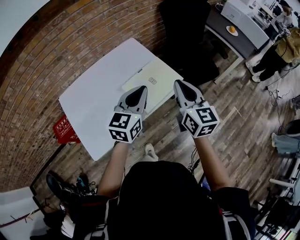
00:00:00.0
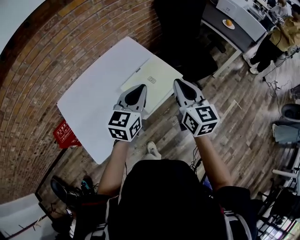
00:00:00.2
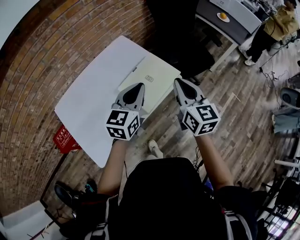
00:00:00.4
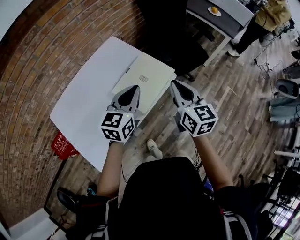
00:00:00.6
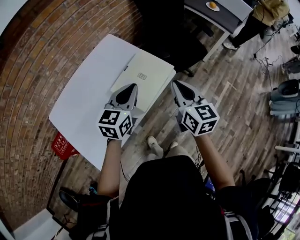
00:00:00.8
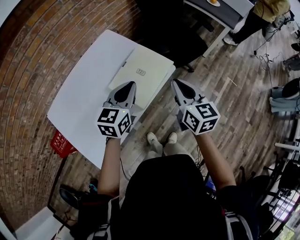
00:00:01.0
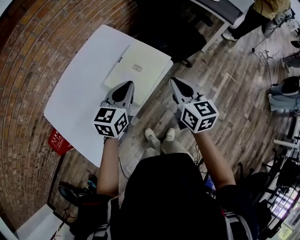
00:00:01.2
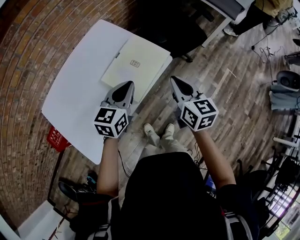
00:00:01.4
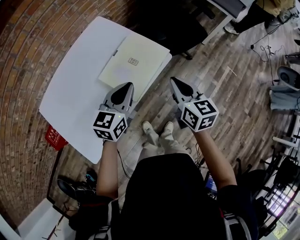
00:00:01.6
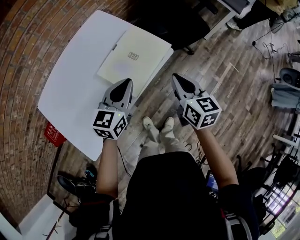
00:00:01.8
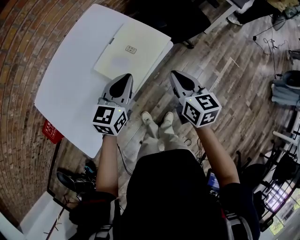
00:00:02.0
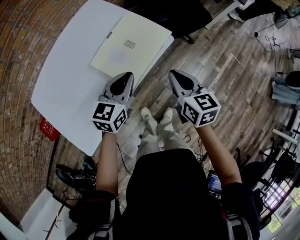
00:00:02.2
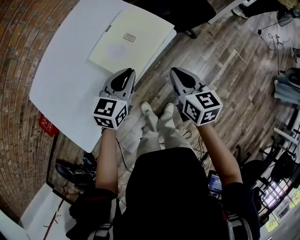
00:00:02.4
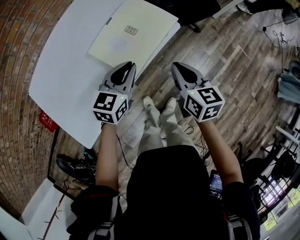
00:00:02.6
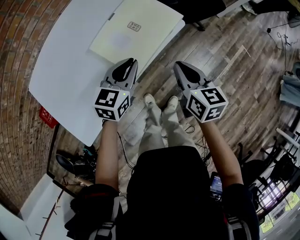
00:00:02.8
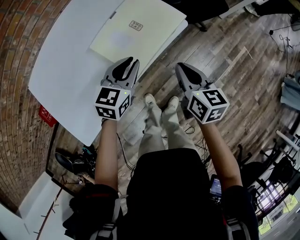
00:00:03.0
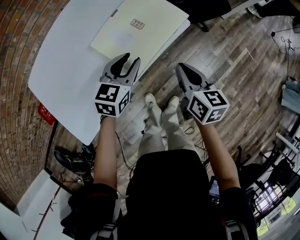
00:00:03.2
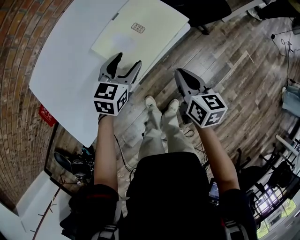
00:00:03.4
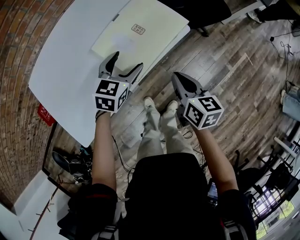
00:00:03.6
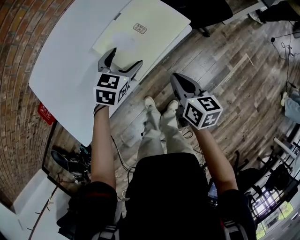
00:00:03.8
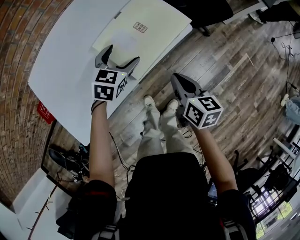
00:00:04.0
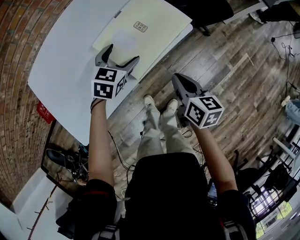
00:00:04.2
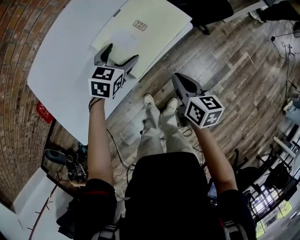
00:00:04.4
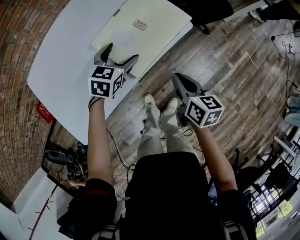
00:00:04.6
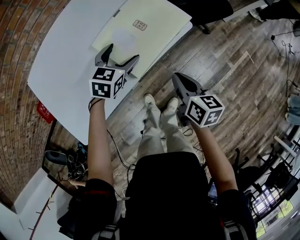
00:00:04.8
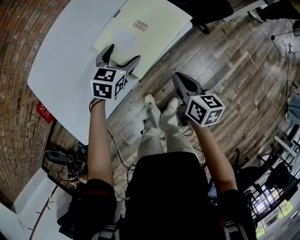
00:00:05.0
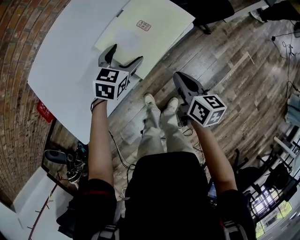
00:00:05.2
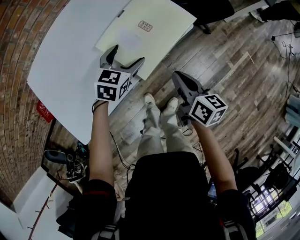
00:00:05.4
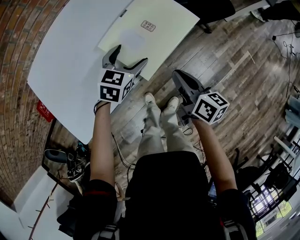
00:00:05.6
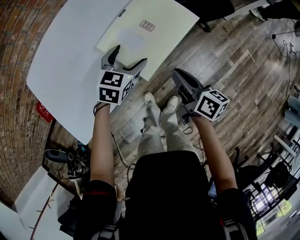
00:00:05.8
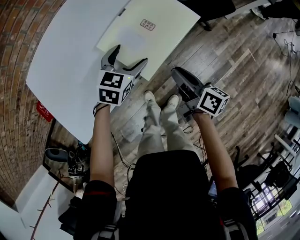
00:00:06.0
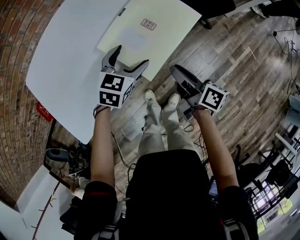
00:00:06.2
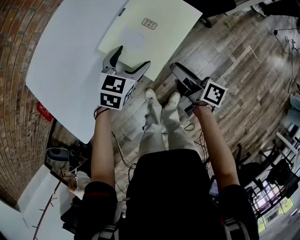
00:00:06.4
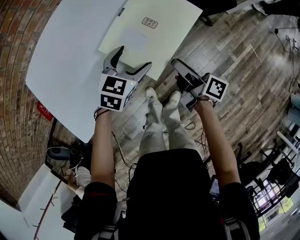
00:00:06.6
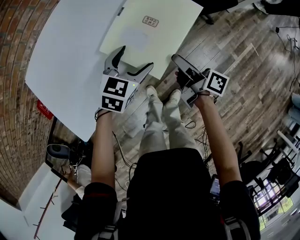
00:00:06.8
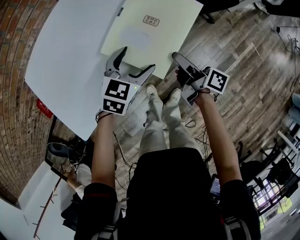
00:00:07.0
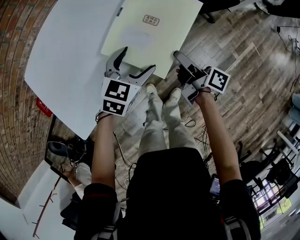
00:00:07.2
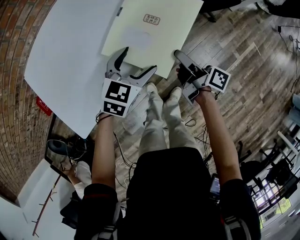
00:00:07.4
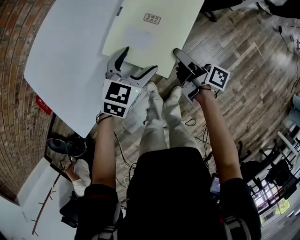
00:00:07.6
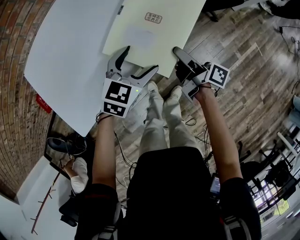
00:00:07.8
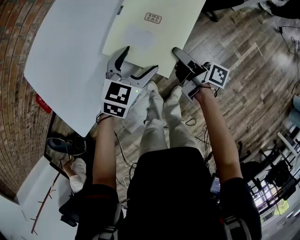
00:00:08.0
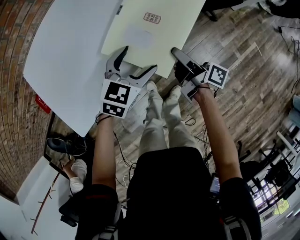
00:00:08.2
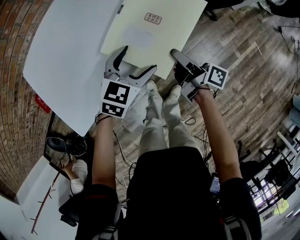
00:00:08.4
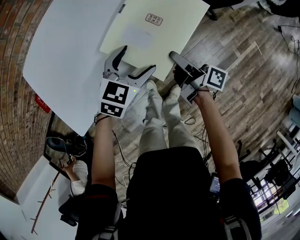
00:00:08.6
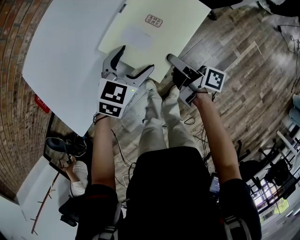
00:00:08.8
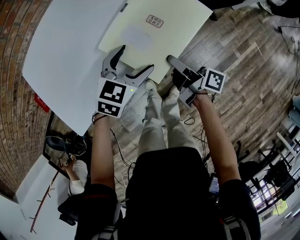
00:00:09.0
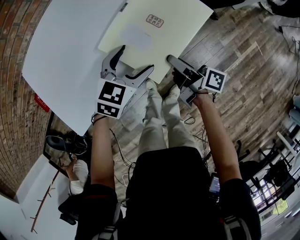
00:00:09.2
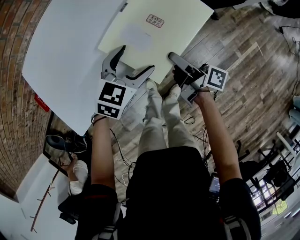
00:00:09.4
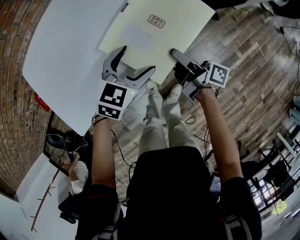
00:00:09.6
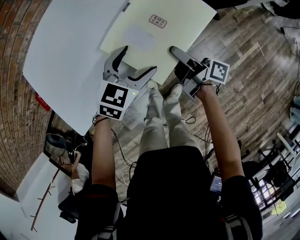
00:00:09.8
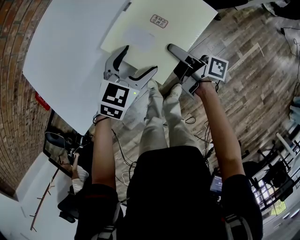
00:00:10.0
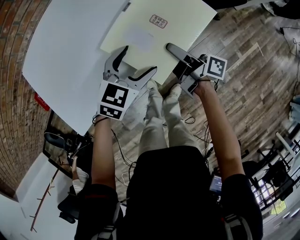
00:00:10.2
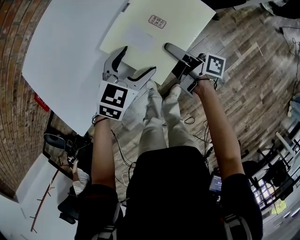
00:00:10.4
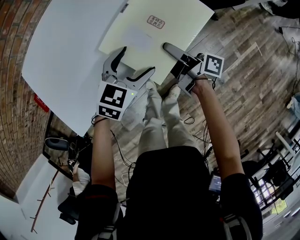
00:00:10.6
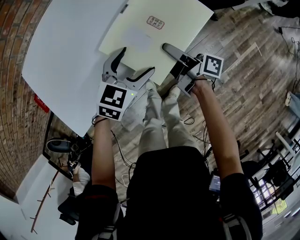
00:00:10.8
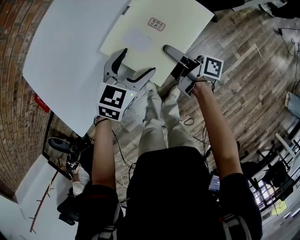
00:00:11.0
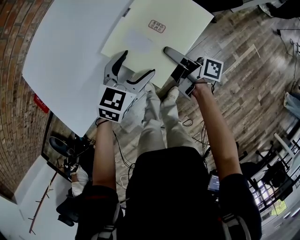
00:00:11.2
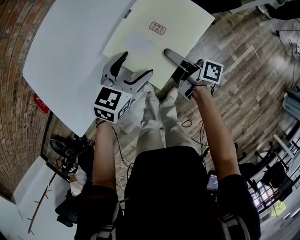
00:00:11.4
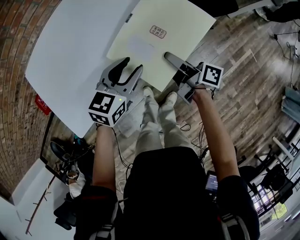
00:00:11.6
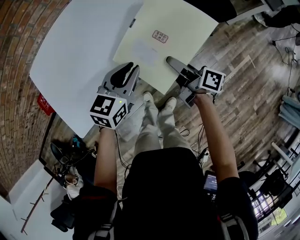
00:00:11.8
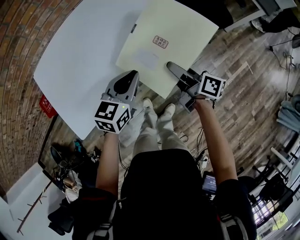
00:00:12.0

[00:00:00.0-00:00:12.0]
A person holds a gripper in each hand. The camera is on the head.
00:00:00.0 to 00:00:01.6: The grippers both shift downward by about 15 cm. The right gripper changes its angle by approximately 20 degrees.
00:00:01.6 to 00:00:03.0: Both grippers move downward, approximately 10 cm.
00:00:03.0 to 00:00:04.4: The left gripper heads forward and downward, covering approximately 5 cm, and opens.
00:00:04.4 to 00:00:06.0: The right gripper rotates about 30 degrees.
00:00:06.0 to 00:00:07.6: The left gripper heads backward, covering approximately 5 cm. Meanwhile the right gripper changes place by roughly 5 cm, swivels roughly 20 degrees, and opens its fingers.
00:00:07.6 to 00:00:10.4: The grippers move only a little.
00:00:10.4 to 00:00:12.0: The grippers both shift upward by some 10 cm. The left gripper turns by some 20 degrees, and closes its fingers; the right gripper changes its angle by some 20 degrees.

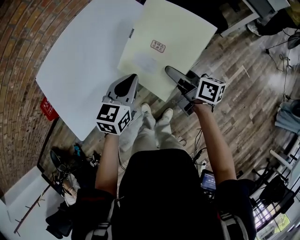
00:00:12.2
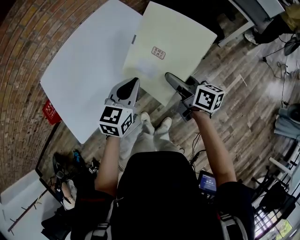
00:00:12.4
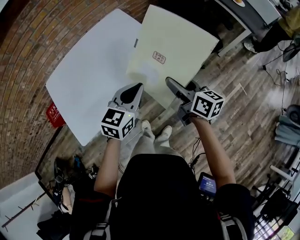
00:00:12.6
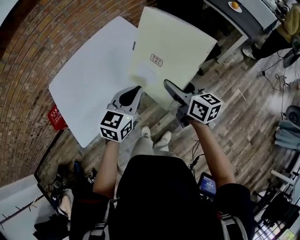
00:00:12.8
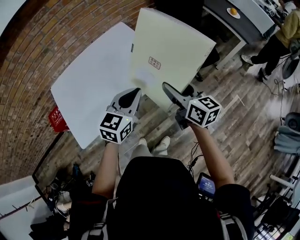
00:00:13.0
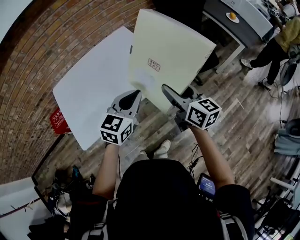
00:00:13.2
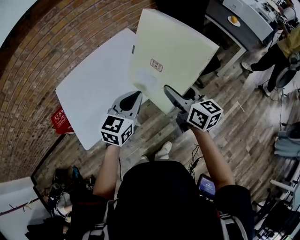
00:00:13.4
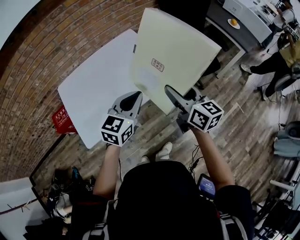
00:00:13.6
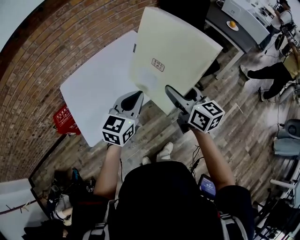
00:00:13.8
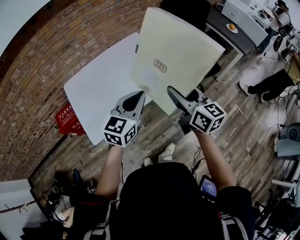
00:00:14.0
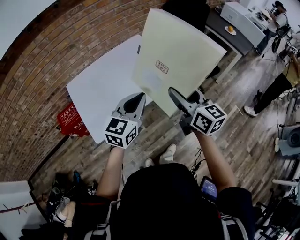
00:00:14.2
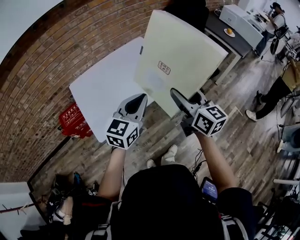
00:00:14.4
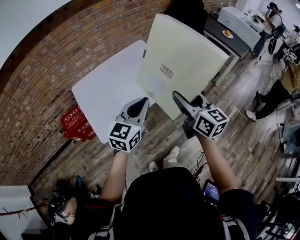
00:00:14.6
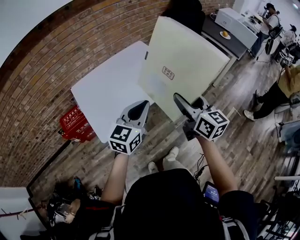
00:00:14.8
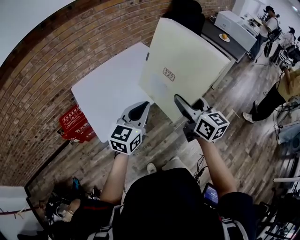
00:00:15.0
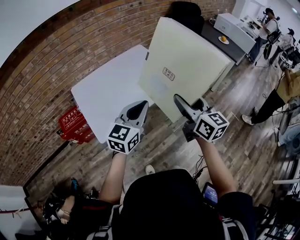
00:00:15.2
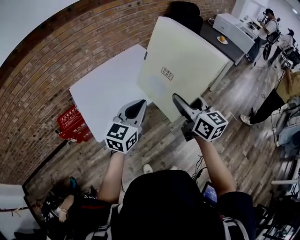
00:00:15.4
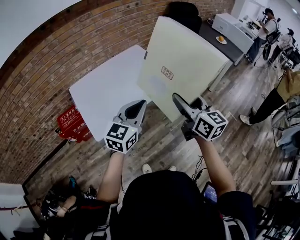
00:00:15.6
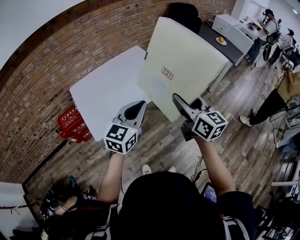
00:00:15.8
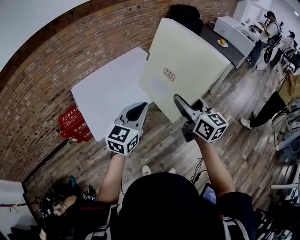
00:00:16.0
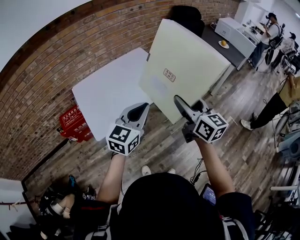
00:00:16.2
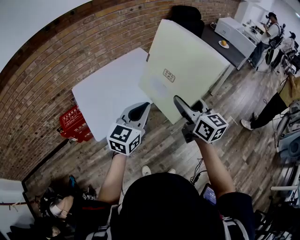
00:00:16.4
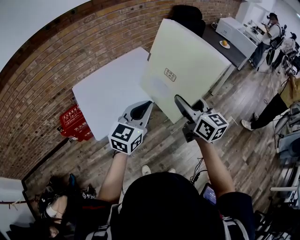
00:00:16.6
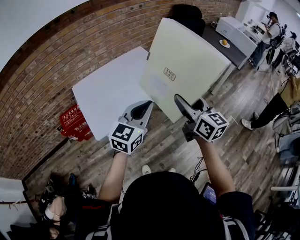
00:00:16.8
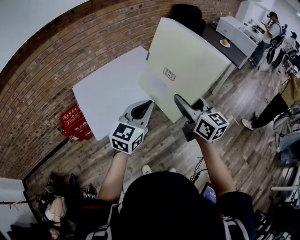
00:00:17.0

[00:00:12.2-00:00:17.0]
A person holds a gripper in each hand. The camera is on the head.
00:00:12.2 to 00:00:13.8: The grippers both shift upward and backward by roughly 20 cm. The right gripper swivels some 40 degrees.
00:00:13.8 to 00:00:15.4: The right gripper moves backward and upward, approximately 15 cm. The left gripper travels backward by roughly 15 cm.
00:00:15.4 to 00:00:17.0: The grippers move only a little.

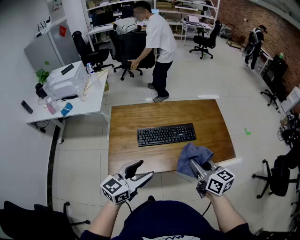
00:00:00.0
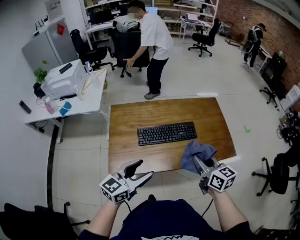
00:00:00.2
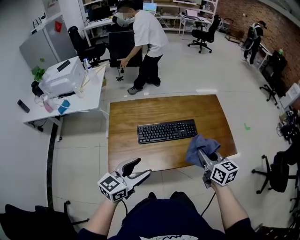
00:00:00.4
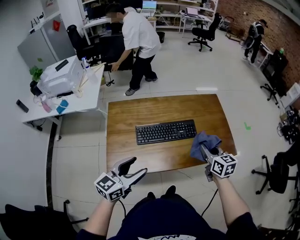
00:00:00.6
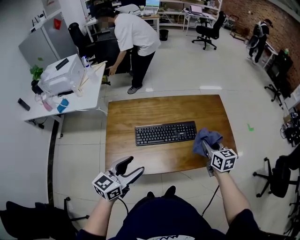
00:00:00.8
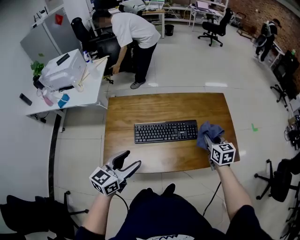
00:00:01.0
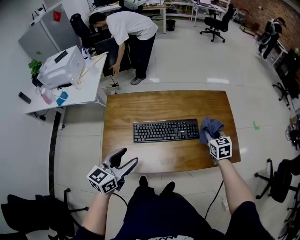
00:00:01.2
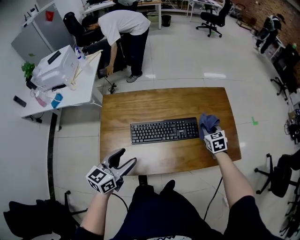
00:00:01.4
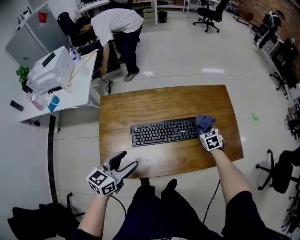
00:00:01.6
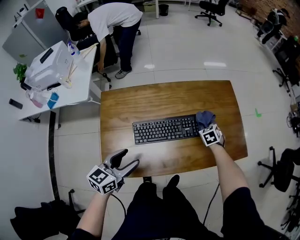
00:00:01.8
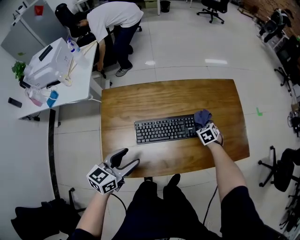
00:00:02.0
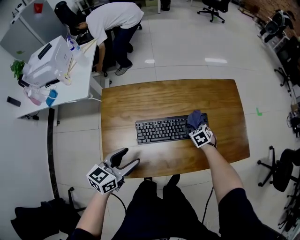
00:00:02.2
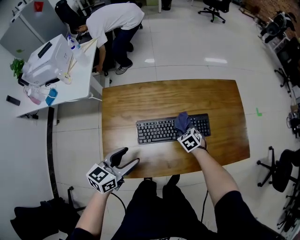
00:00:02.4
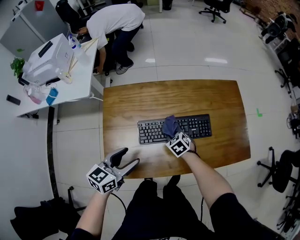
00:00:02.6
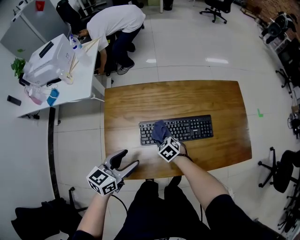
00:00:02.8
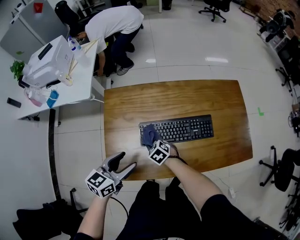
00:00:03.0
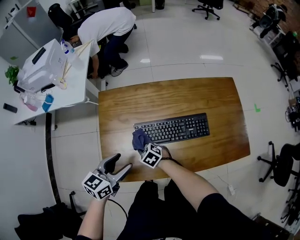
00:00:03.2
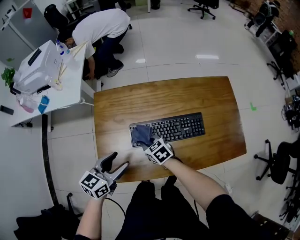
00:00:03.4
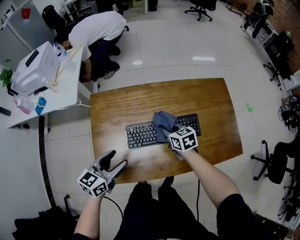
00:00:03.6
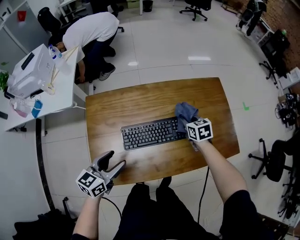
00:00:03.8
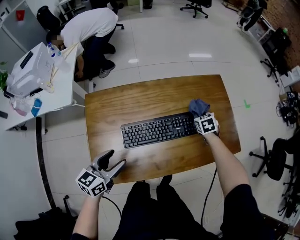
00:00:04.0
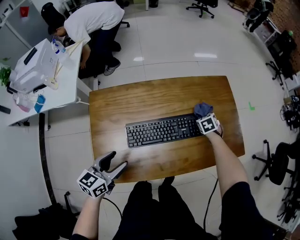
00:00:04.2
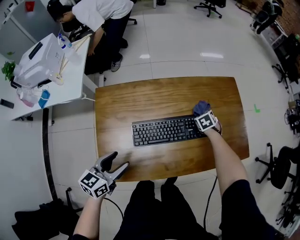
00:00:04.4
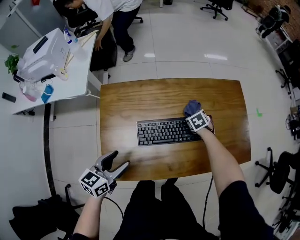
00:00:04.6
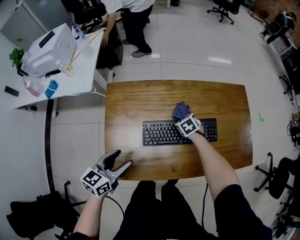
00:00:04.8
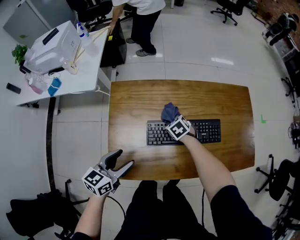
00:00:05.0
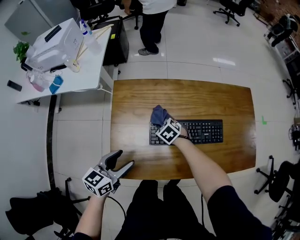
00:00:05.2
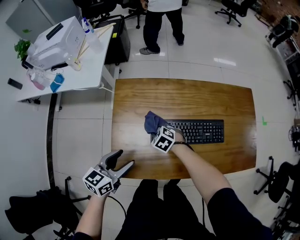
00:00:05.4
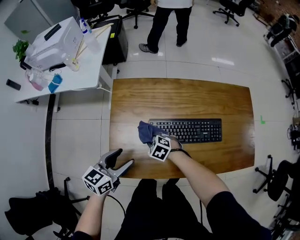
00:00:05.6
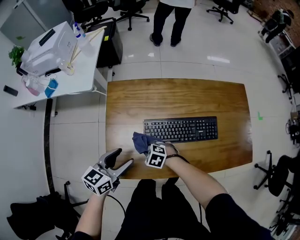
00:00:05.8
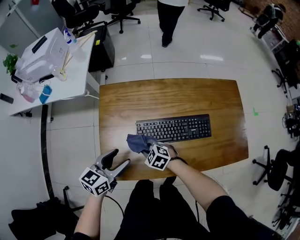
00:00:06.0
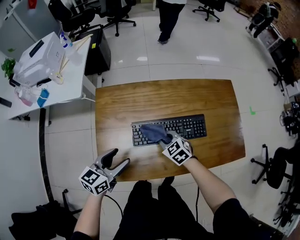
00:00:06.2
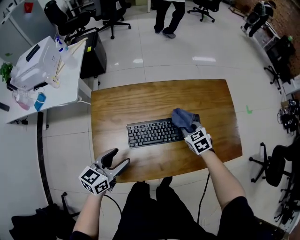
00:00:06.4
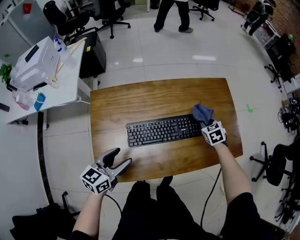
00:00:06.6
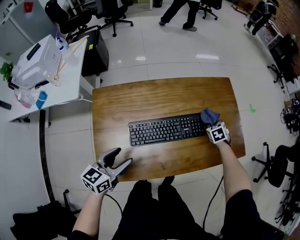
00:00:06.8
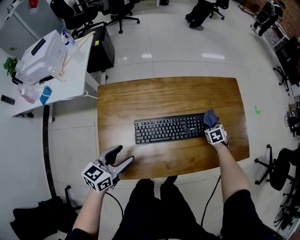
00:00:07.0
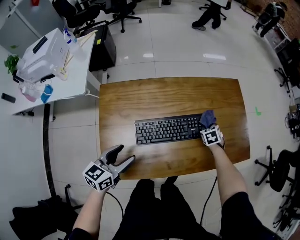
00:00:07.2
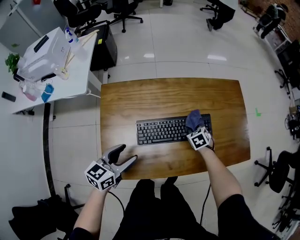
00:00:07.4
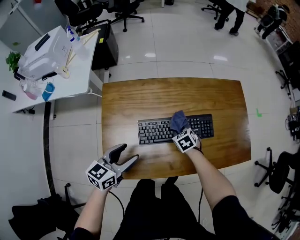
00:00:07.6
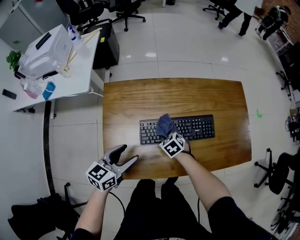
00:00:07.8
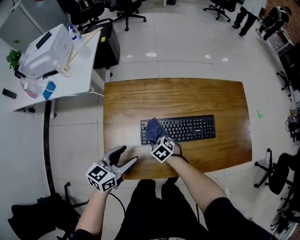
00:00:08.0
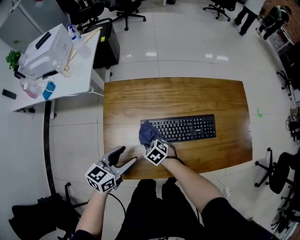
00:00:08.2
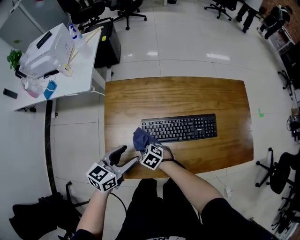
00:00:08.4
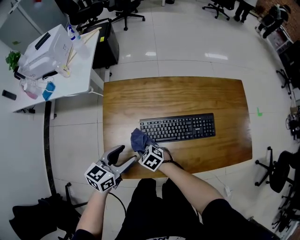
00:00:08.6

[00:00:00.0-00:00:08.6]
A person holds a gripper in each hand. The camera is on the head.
00:00:00.0 to 00:00:01.4: The right gripper shifts roughly 35 cm forward and downward, and changes its angle by some 40 degrees. Meanwhile the left gripper shifts some 15 cm forward, downward and to the left.
00:00:01.4 to 00:00:02.8: The right gripper moves to the left and downward, about 35 cm, and turns by roughly 30 degrees. The left gripper heads to the left and downward, covering about 10 cm.
00:00:02.8 to 00:00:04.4: The right gripper moves roughly 10 cm upward and comes back, and swivels approximately 30 degrees.
00:00:04.4 to 00:00:05.8: The right gripper shifts by roughly 40 cm, and swivels approximately 60 degrees.
00:00:05.8 to 00:00:07.2: The left gripper moves some 5 cm, while the right gripper moves about 10 cm upward and comes back, and swivels roughly 60 degrees.
00:00:07.2 to 00:00:08.6: The right gripper shifts by some 40 cm, and turns by about 50 degrees.
